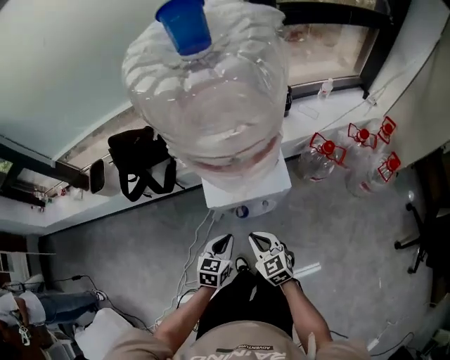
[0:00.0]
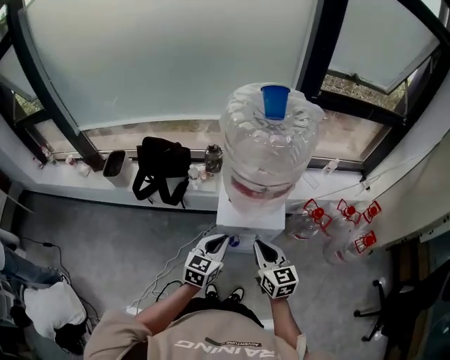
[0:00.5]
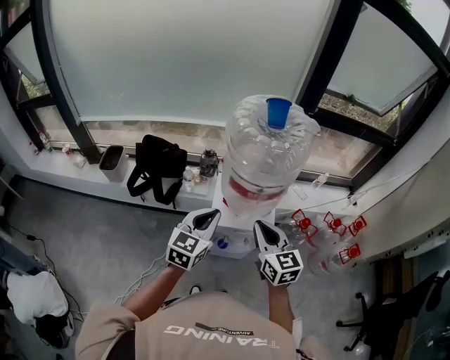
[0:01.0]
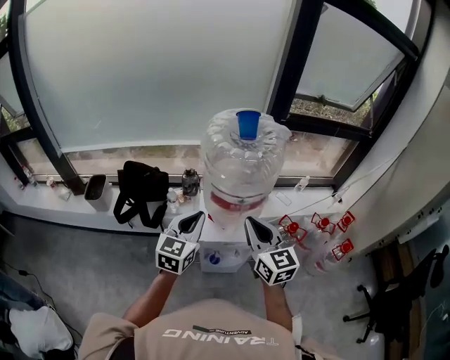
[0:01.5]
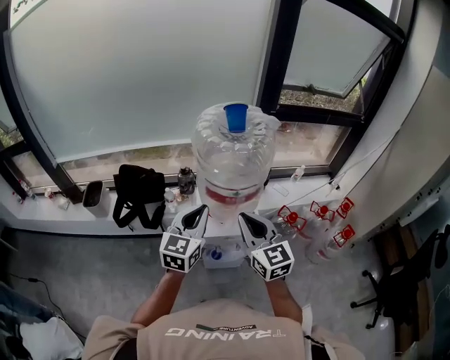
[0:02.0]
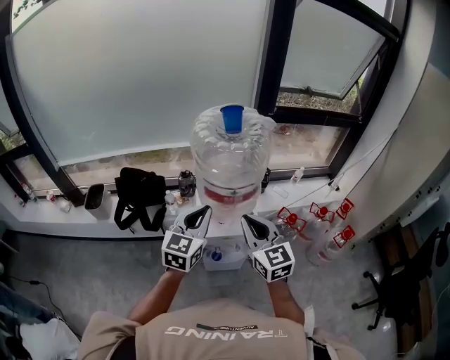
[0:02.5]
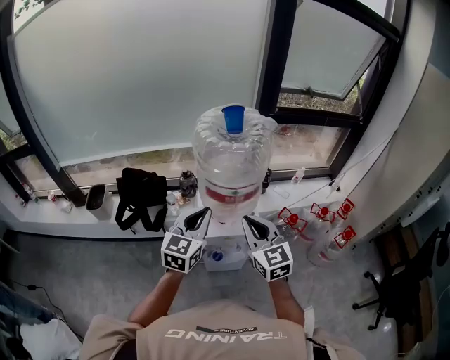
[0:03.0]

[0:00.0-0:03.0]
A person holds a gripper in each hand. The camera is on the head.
0:00.0 to 0:01.5: The two grippers go some 35 cm upward. The right gripper swivels approximately 30 degrees. Meanwhile the left gripper changes its angle by roughly 30 degrees.
0:01.5 to 0:03.0: The grippers stay close to where they were, moving slightly.

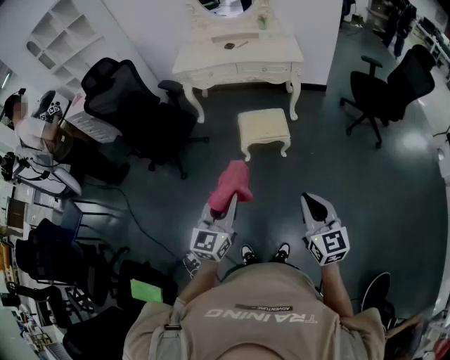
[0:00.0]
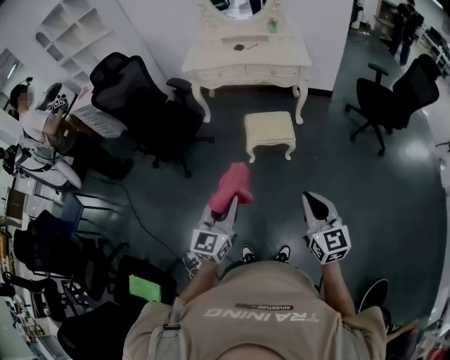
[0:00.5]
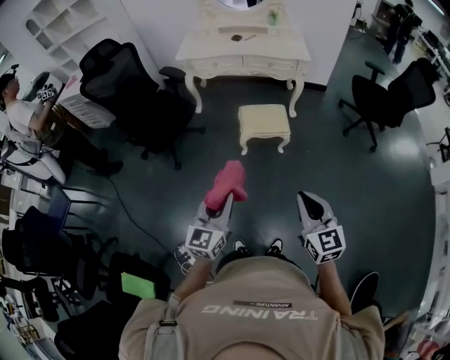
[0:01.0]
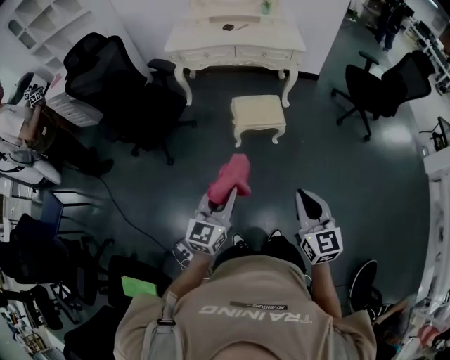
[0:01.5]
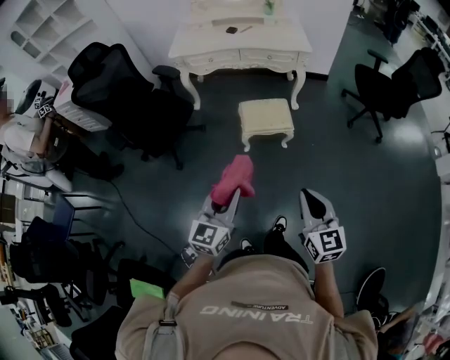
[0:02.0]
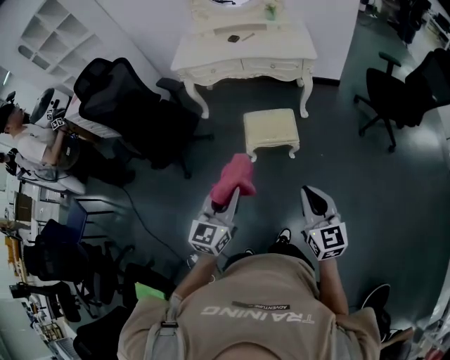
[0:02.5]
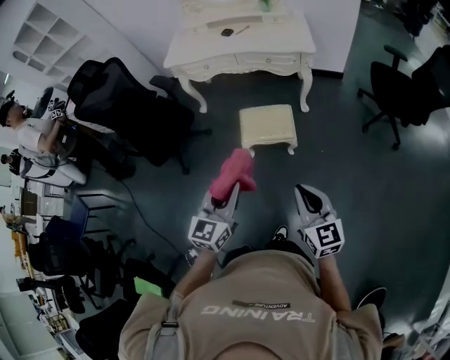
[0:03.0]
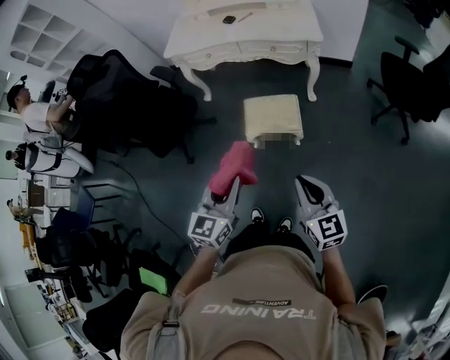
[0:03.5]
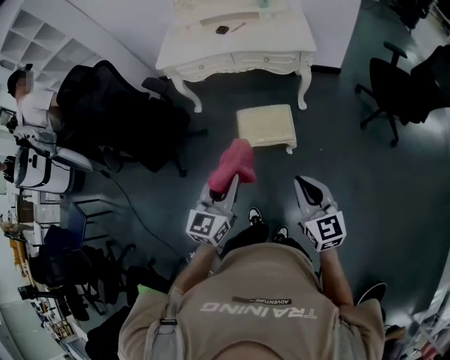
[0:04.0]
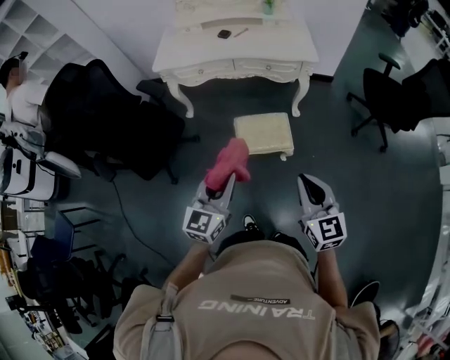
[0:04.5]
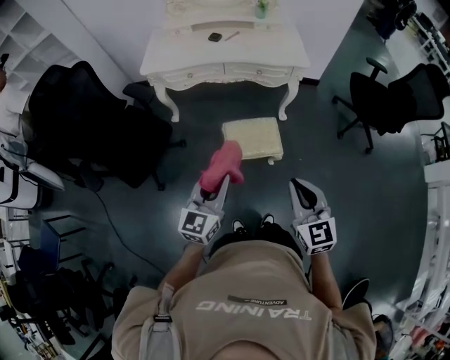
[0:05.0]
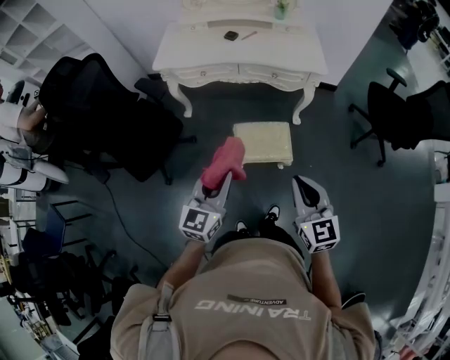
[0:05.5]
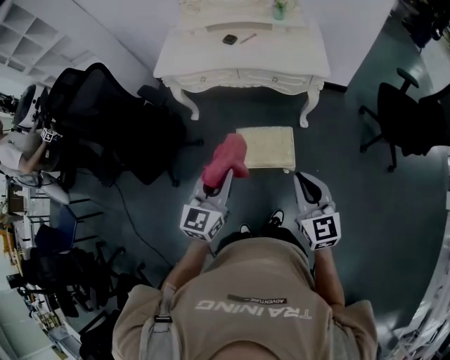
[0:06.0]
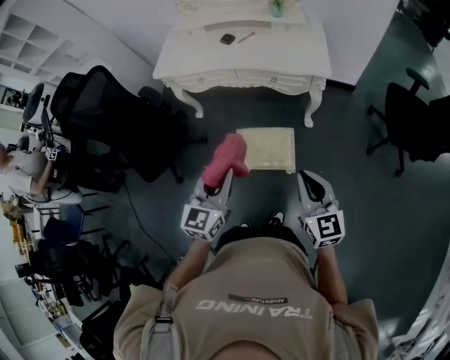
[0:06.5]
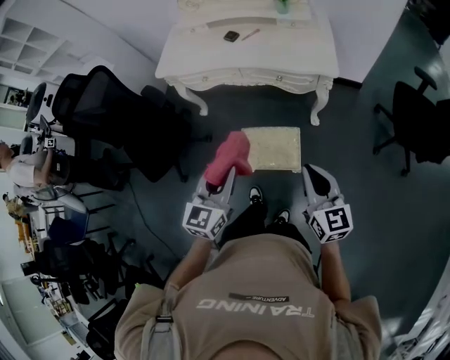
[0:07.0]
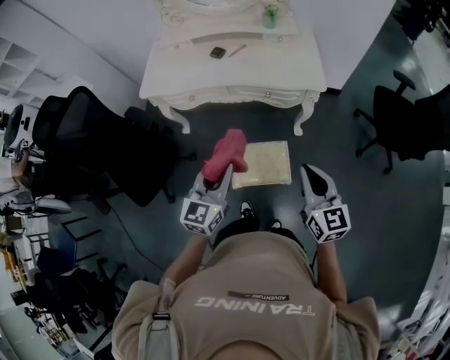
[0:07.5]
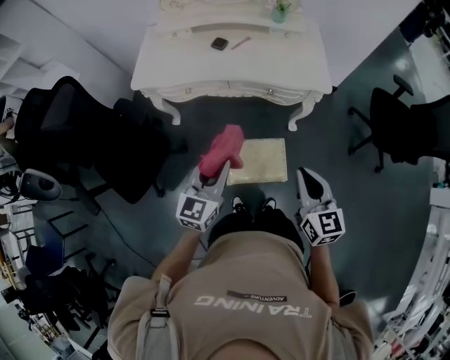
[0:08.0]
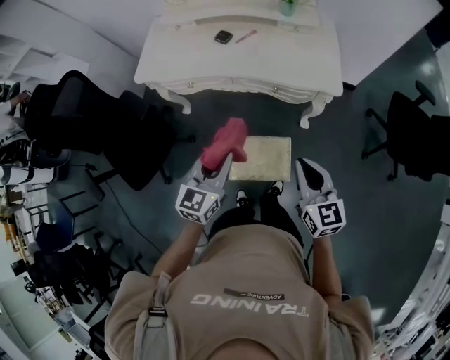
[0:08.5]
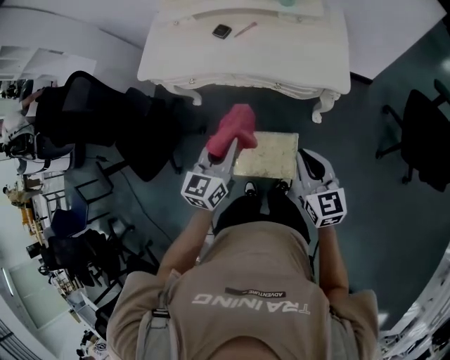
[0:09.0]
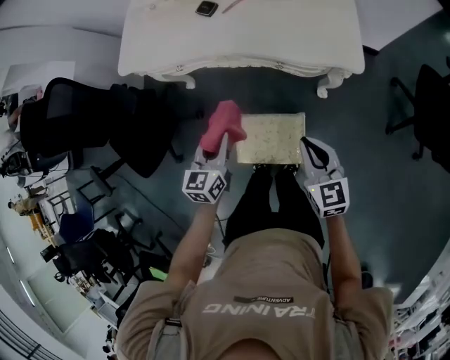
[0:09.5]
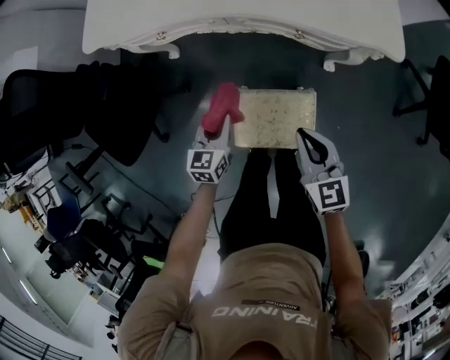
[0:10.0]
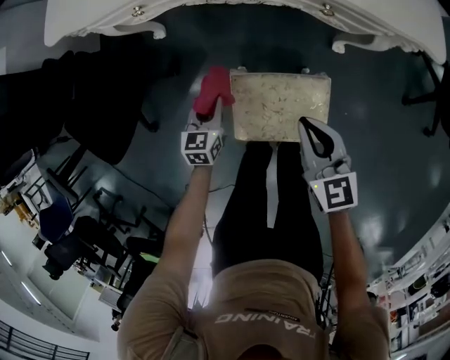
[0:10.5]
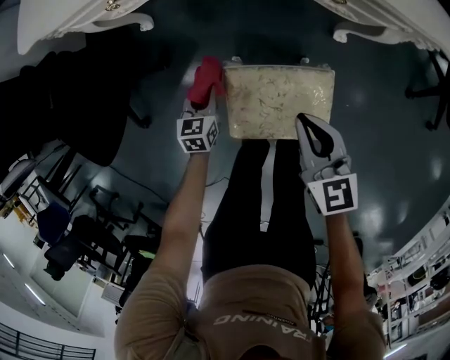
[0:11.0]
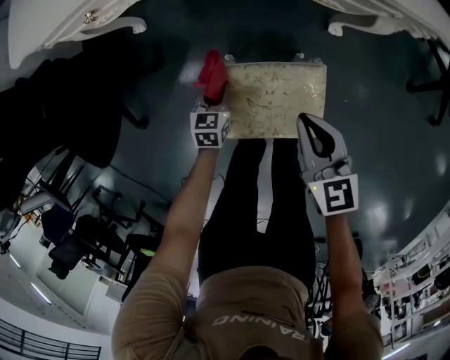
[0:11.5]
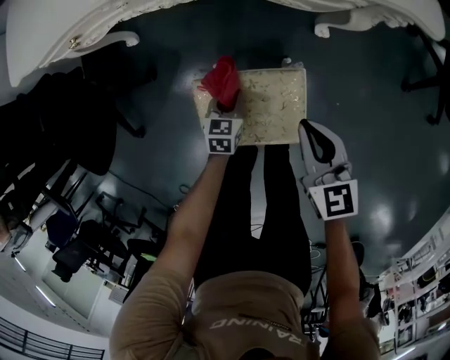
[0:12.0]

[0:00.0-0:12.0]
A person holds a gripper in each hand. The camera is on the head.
0:00.0 to 0:02.0: Both grippers travel together forward and to the left, approximately 10 cm.
0:02.0 to 0:04.0: Both grippers travel together forward and to the right, about 25 cm.
0:04.0 to 0:06.0: The two grippers go roughly 20 cm forward.
0:06.0 to 0:08.0: Both grippers move forward, approximately 20 cm.
0:08.0 to 0:10.0: The left gripper goes some 35 cm downward, and swivels some 30 degrees, while the right gripper shifts roughly 30 cm downward and forward.
0:10.0 to 0:12.0: The right gripper heads downward and to the right, covering some 20 cm. Meanwhile the left gripper moves downward and to the right, roughly 30 cm.

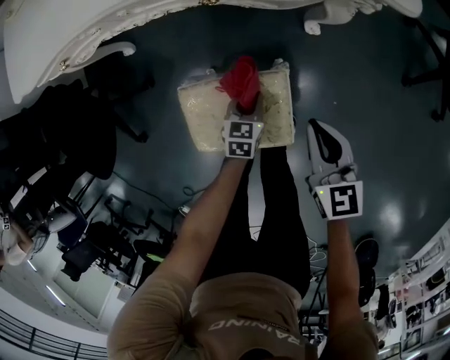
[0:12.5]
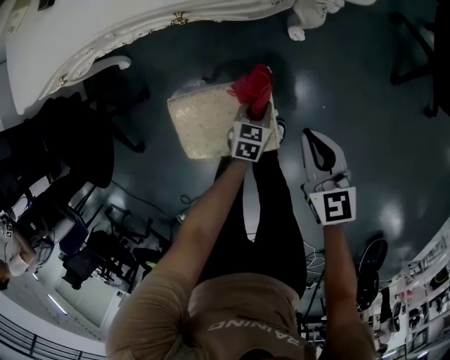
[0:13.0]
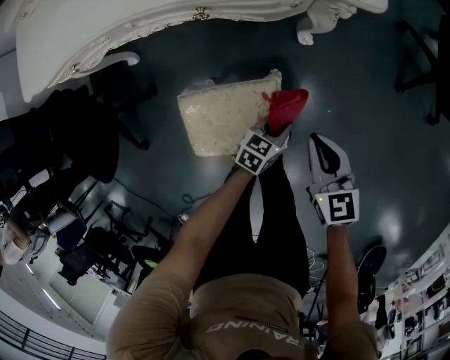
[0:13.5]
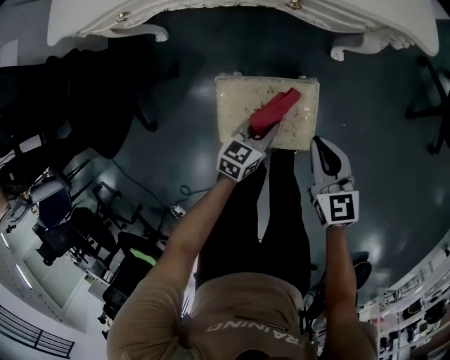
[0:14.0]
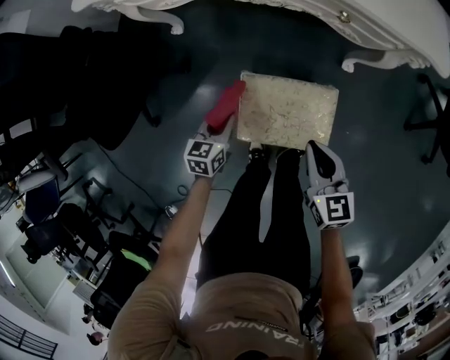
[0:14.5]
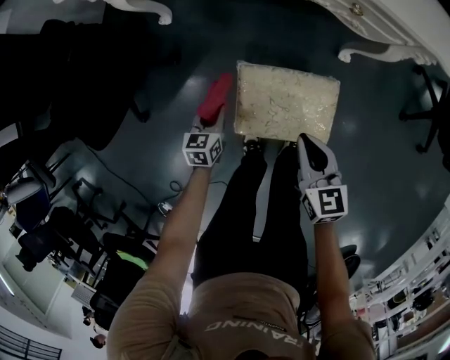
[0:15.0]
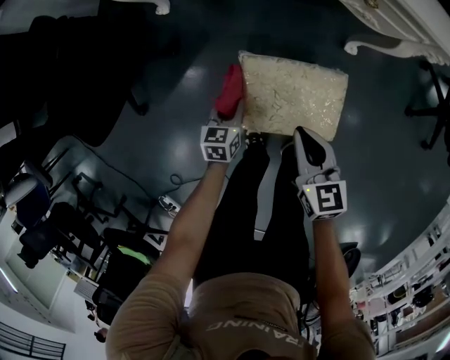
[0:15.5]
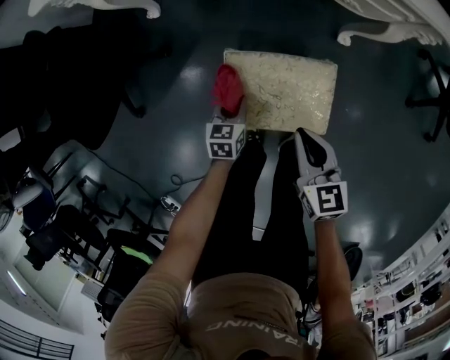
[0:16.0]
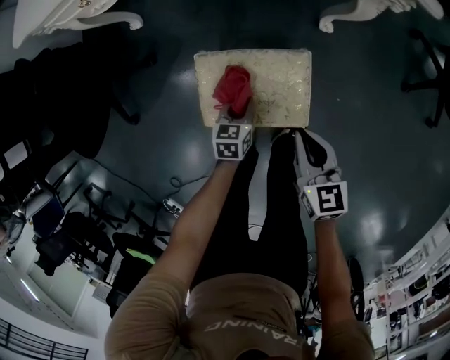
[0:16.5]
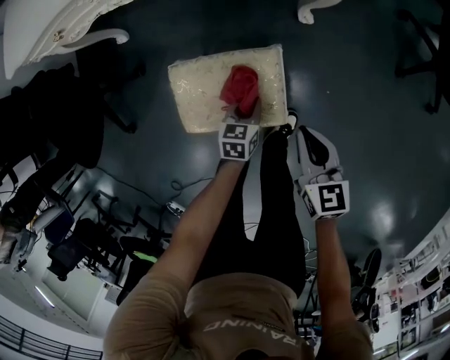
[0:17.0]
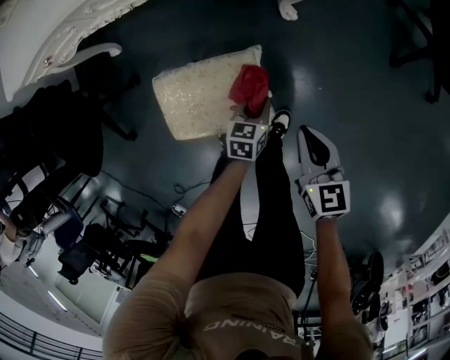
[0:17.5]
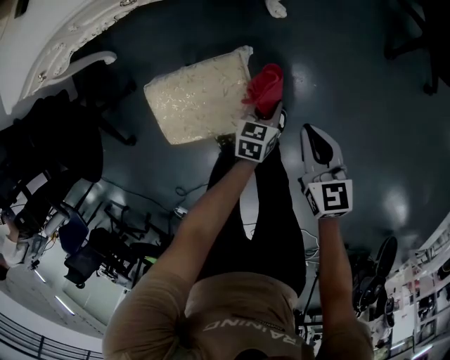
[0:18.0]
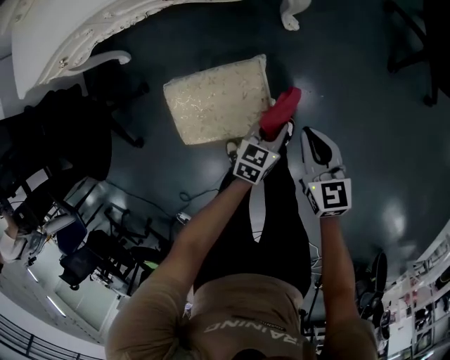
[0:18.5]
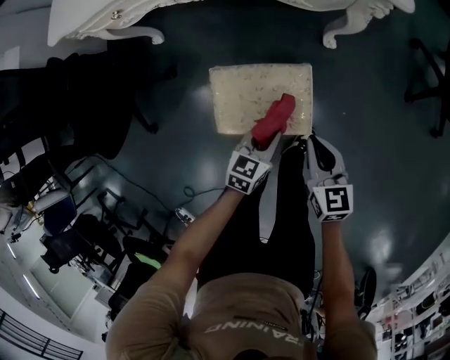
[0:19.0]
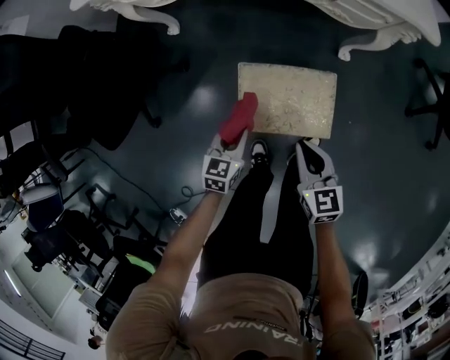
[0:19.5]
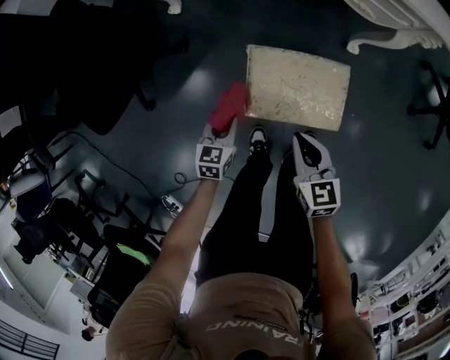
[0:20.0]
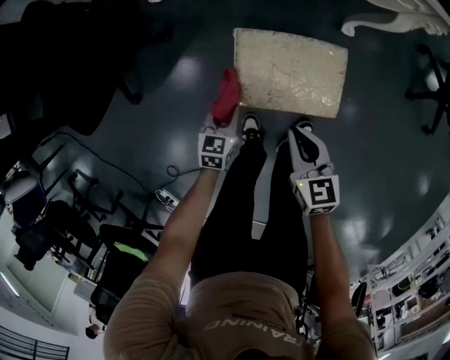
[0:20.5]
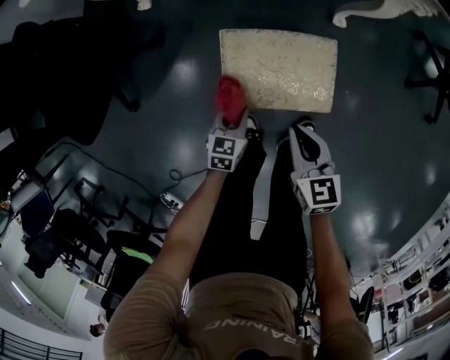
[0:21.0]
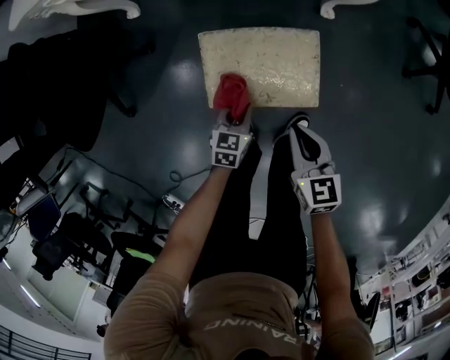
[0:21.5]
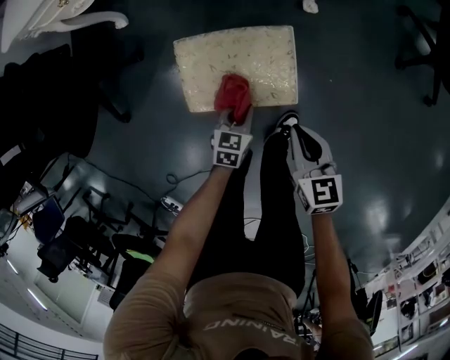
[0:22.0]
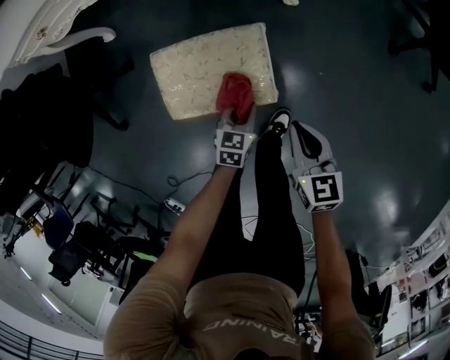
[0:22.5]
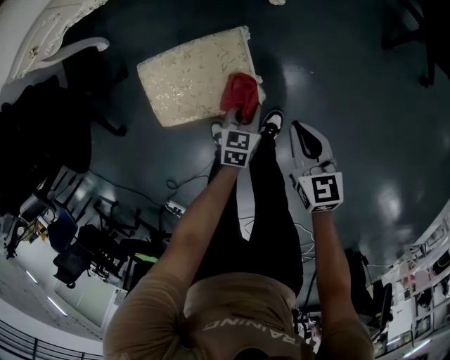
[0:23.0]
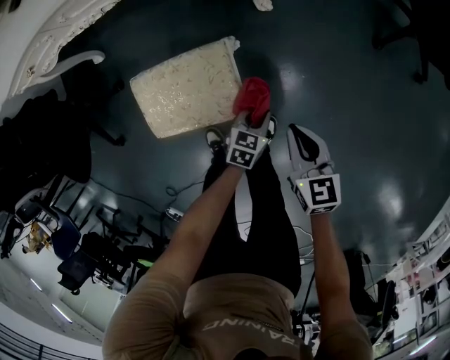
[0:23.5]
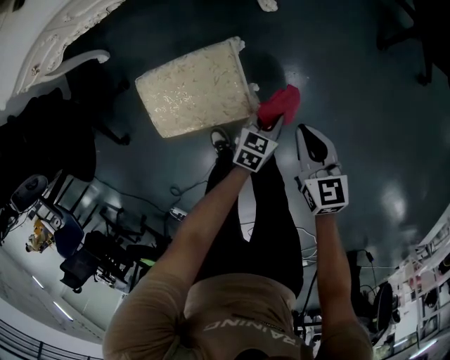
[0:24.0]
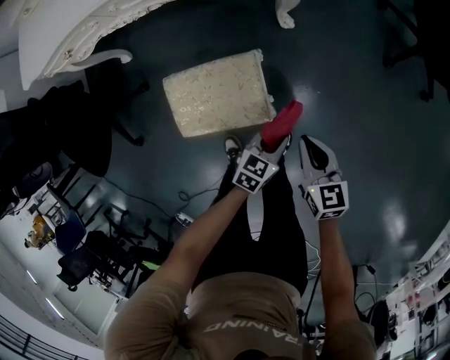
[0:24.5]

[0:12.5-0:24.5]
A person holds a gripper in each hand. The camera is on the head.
0:12.5 to 0:14.5: The left gripper changes place by about 30 cm, while the right gripper ends up about 20 cm from where it was.
0:14.5 to 0:16.5: The left gripper goes some 20 cm to the right and downward, while the right gripper heads to the right and downward, covering approximately 10 cm.
0:16.5 to 0:18.5: The right gripper heads to the right, covering roughly 15 cm. The left gripper moves to the right, some 25 cm, and swivels some 30 degrees.
0:18.5 to 0:20.5: The left gripper shifts by some 40 cm, and swivels roughly 30 degrees. Meanwhile the right gripper shifts by roughly 35 cm.
0:20.5 to 0:22.5: Both grippers move to the right, approximately 30 cm.
0:22.5 to 0:24.5: The left gripper goes some 15 cm to the right and upward; the right gripper heads to the right, covering some 5 cm.
